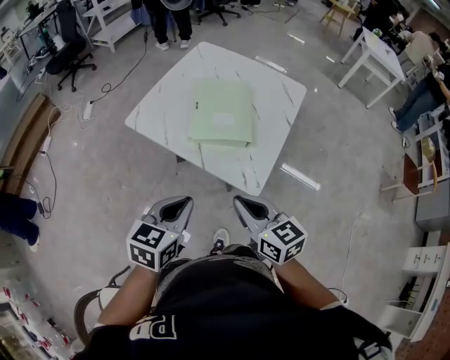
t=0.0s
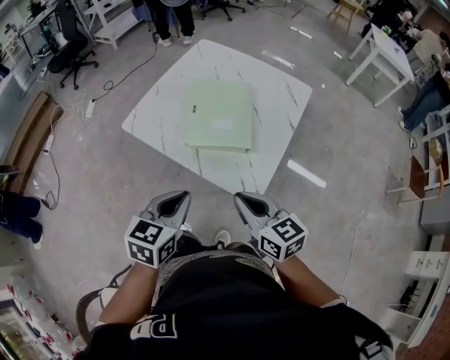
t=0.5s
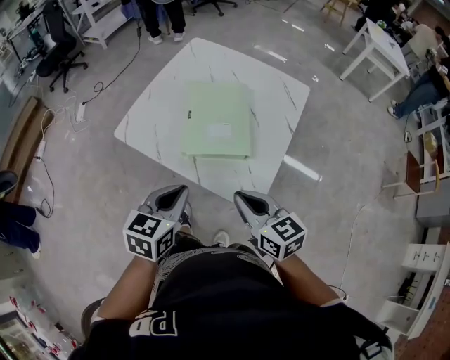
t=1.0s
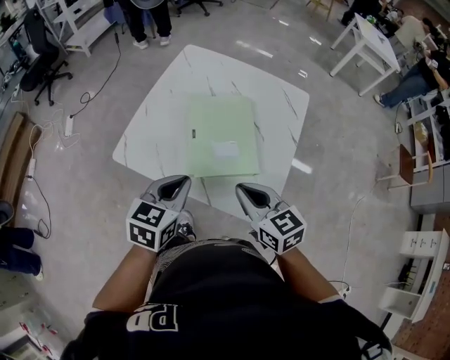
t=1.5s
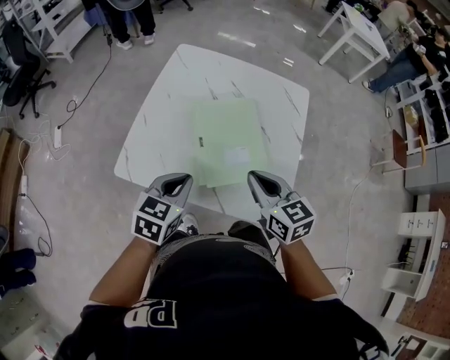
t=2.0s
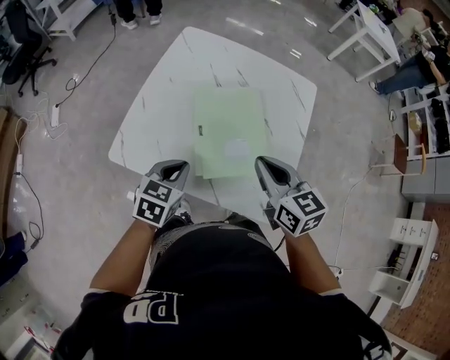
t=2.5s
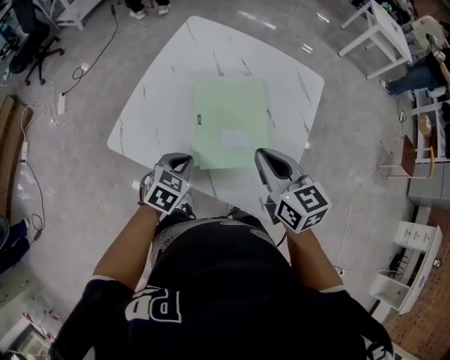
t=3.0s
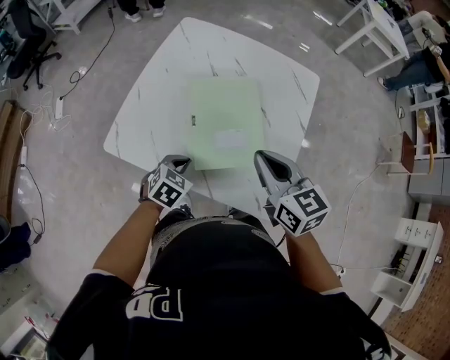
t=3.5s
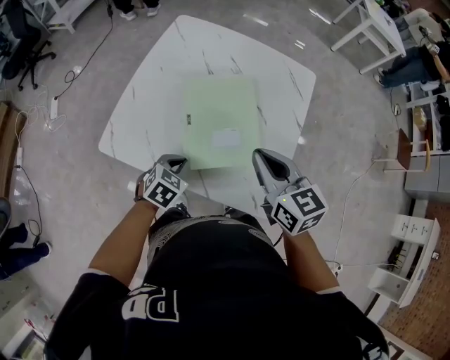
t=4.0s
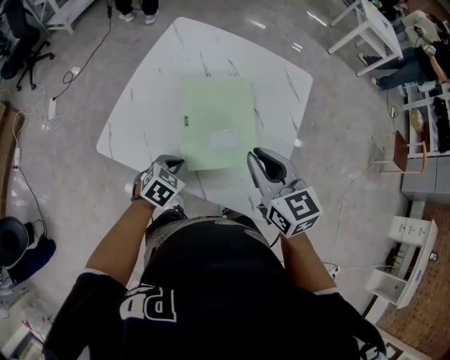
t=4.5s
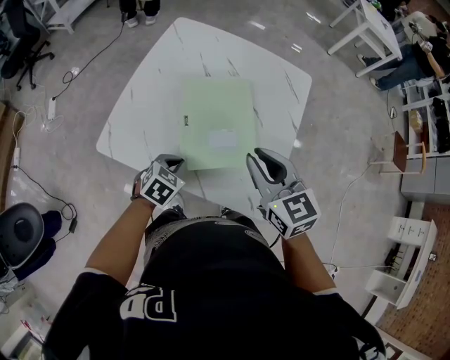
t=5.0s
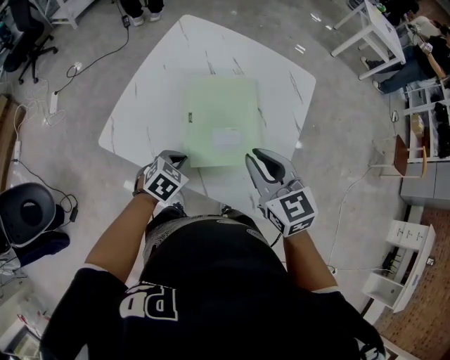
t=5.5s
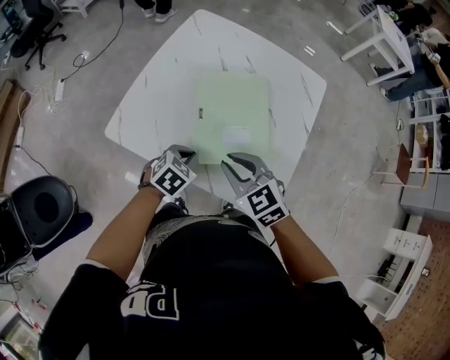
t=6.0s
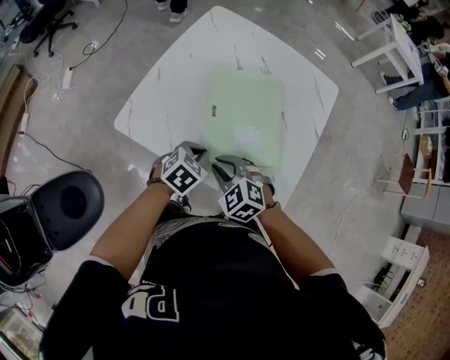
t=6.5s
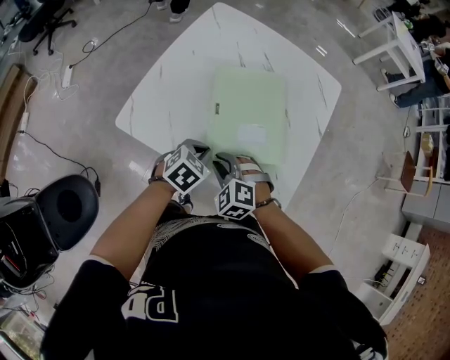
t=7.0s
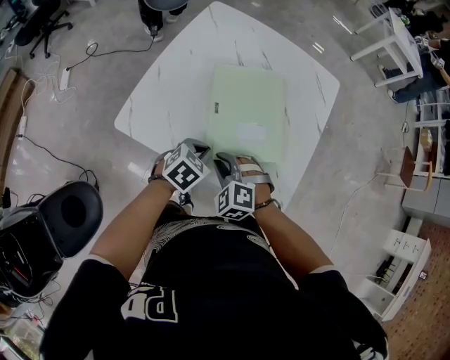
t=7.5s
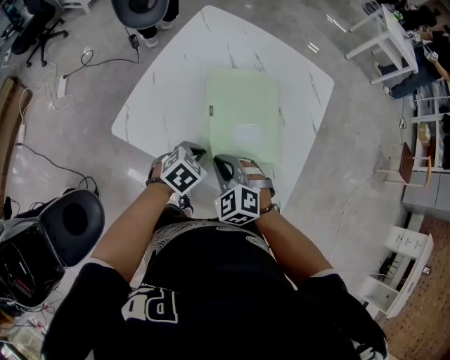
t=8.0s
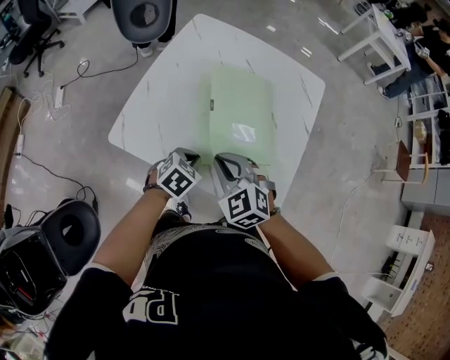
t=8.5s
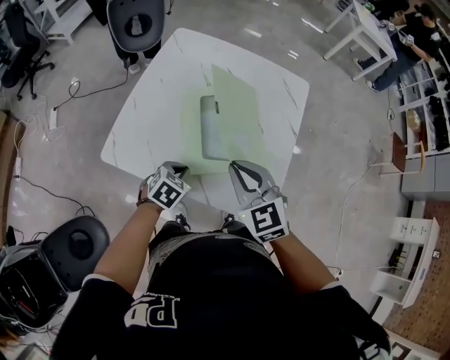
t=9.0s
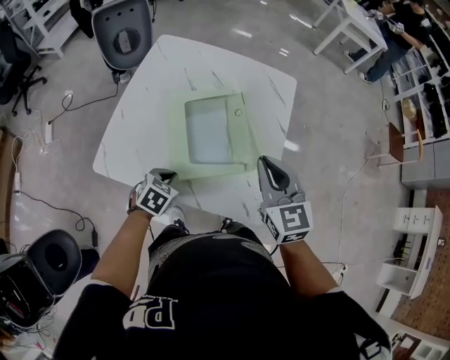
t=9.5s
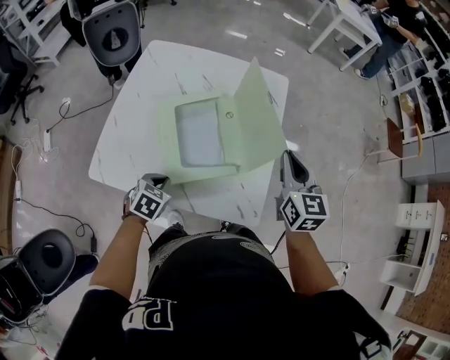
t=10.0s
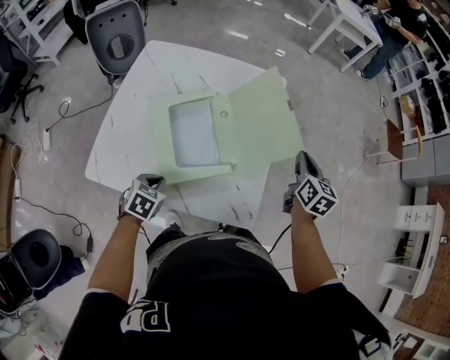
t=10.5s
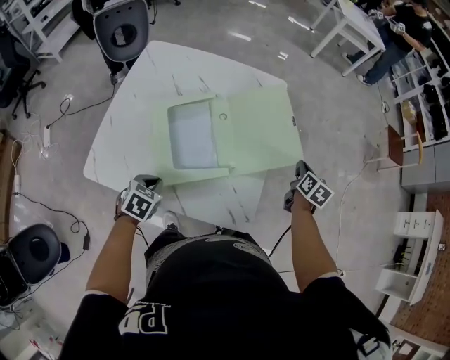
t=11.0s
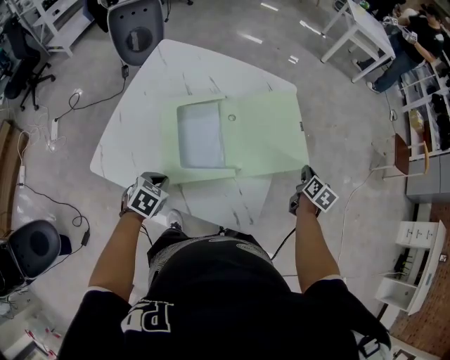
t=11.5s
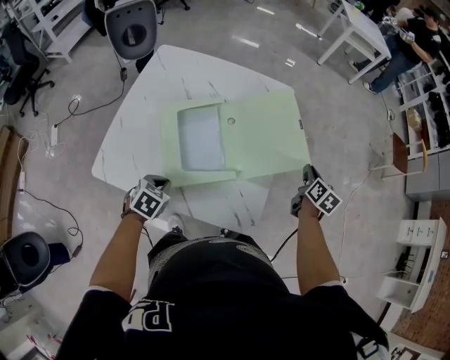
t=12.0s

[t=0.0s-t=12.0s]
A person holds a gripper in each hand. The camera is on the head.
t=0.0s to t=2.0s: Both grippers move forward, about 25 cm.
t=2.0s to t=4.0s: The left gripper shifts some 15 cm downward, and swivels about 20 degrees, while the right gripper ends up roughly 5 cm from where it was.
t=4.0s to t=6.0s: The right gripper shifts approximately 10 cm downward and to the left, and turns by roughly 30 degrees.
t=6.0s to t=8.0s: The right gripper moves downward and to the left, about 10 cm, and rotates roughly 30 degrees.
t=8.0s to t=10.0s: The right gripper travels to the right, upward and forward by roughly 35 cm, and turns by roughly 70 degrees.
t=10.0s to t=12.0s: The right gripper heads to the right, downward and forward, covering some 25 cm, and turns by approximately 30 degrees.

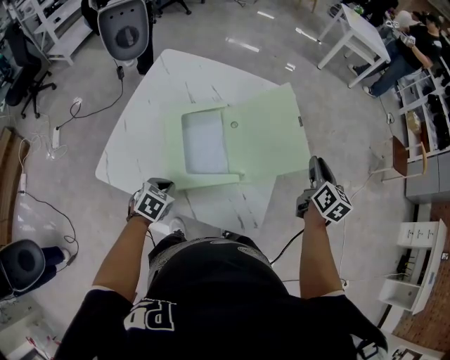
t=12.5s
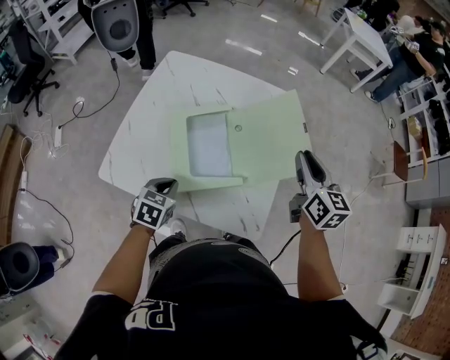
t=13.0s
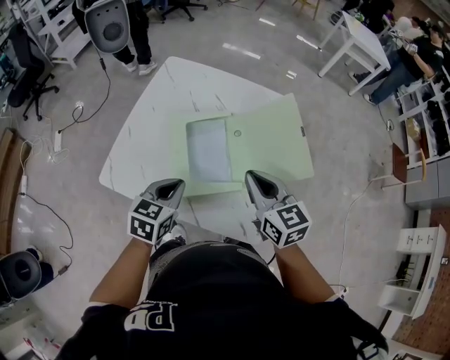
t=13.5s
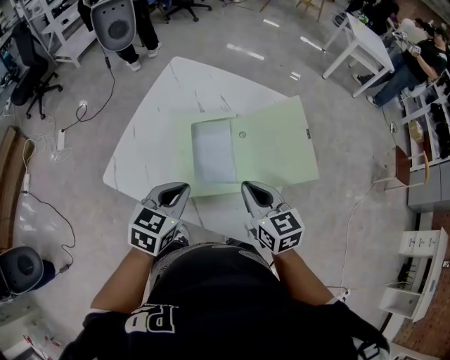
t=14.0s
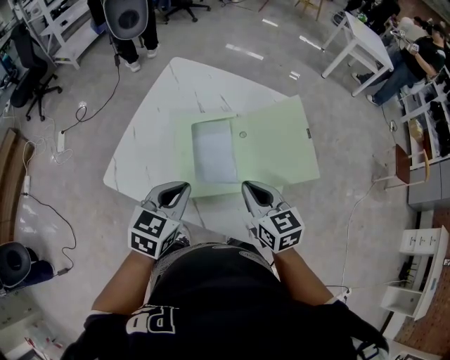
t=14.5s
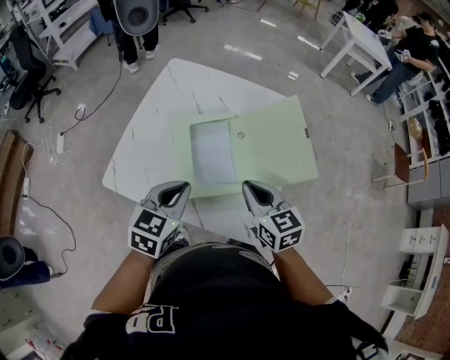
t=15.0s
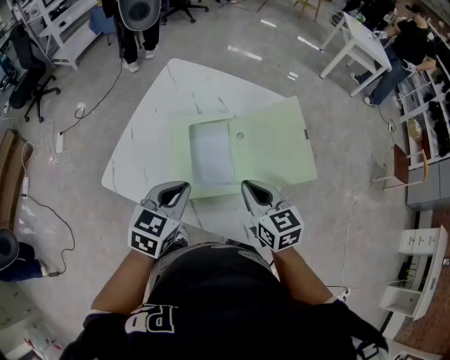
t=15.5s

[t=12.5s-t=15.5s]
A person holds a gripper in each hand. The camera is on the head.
t=12.5s to t=14.0s: The left gripper goes approximately 15 cm upward, and turns by some 30 degrees. The right gripper goes some 25 cm to the left, and turns by some 40 degrees.
t=14.0s to t=15.5s: The grippers move only a little.

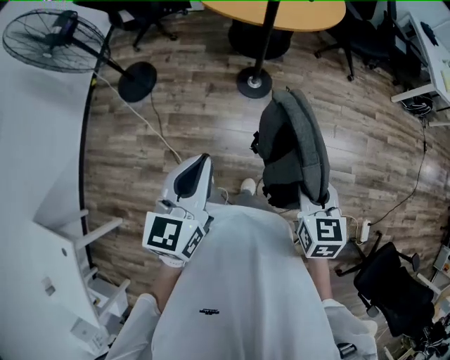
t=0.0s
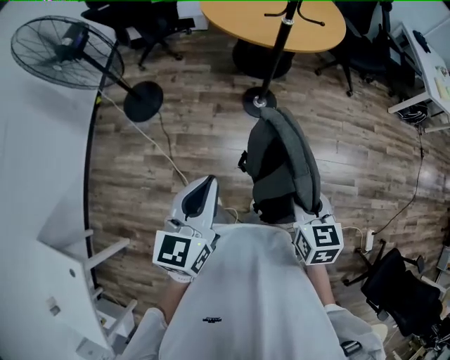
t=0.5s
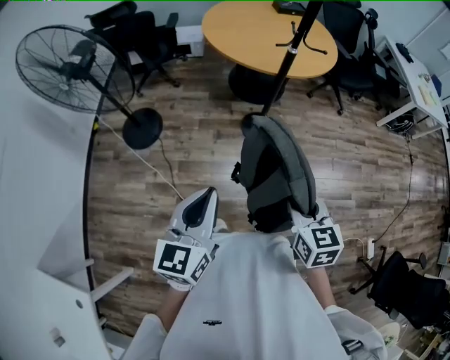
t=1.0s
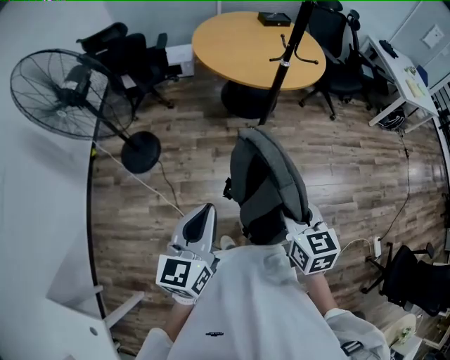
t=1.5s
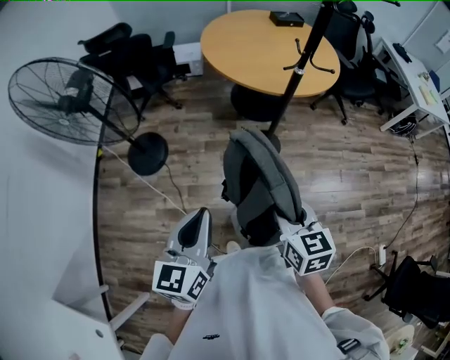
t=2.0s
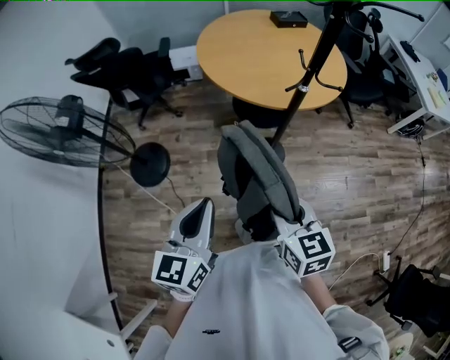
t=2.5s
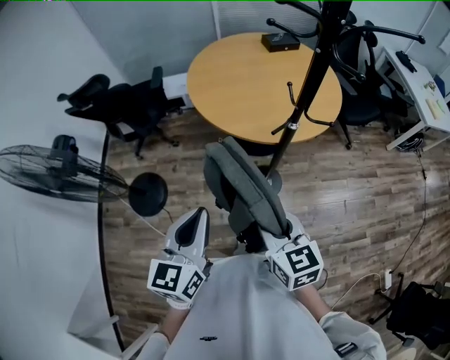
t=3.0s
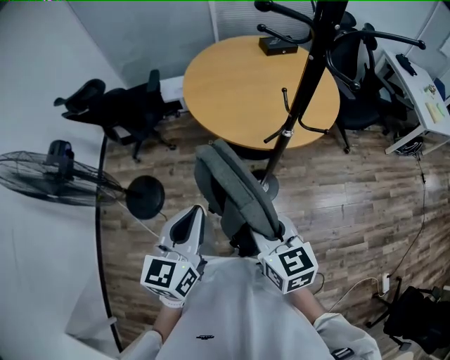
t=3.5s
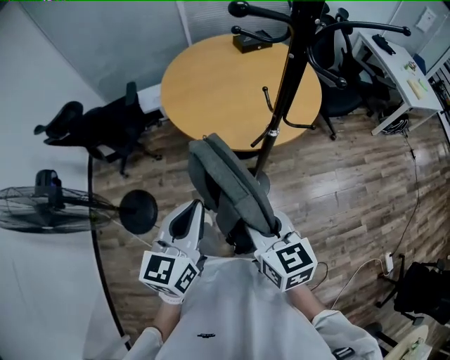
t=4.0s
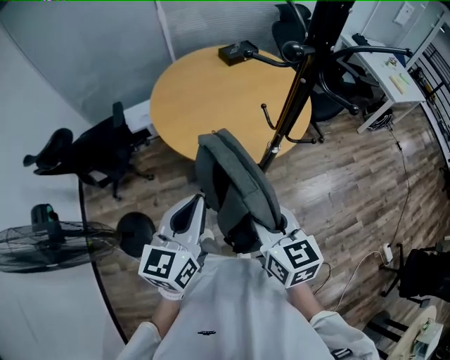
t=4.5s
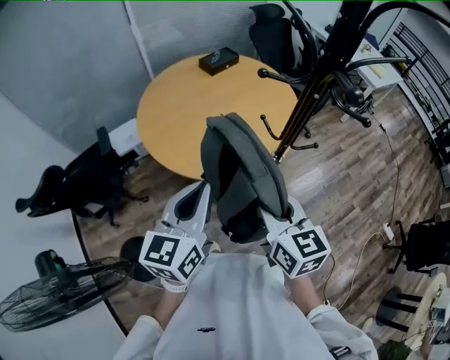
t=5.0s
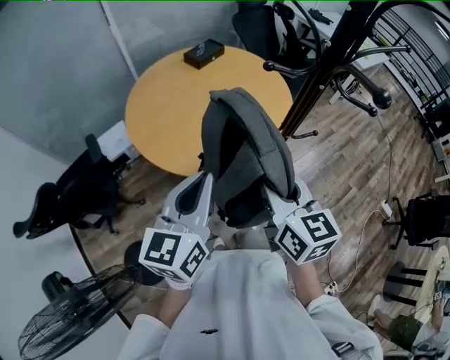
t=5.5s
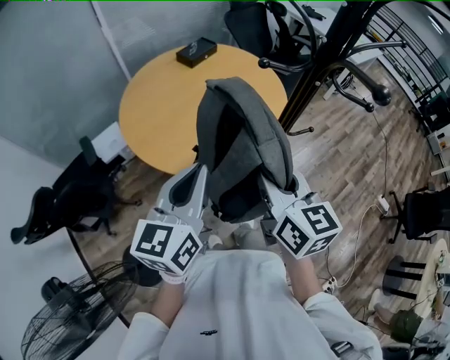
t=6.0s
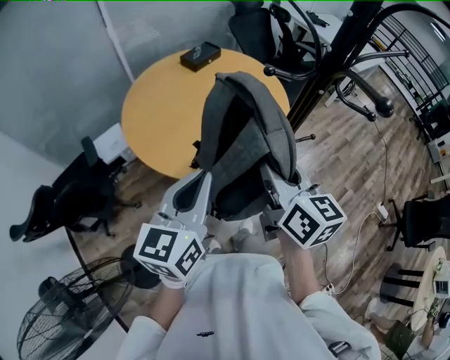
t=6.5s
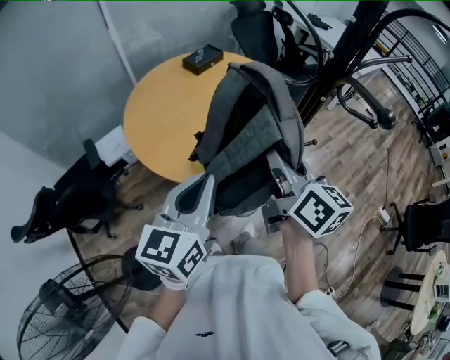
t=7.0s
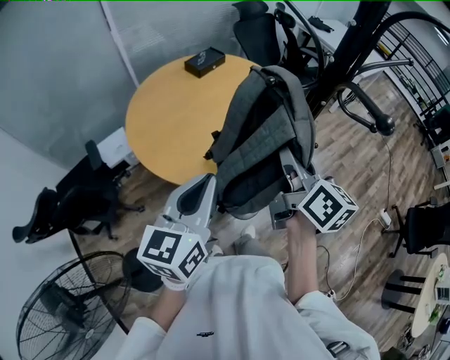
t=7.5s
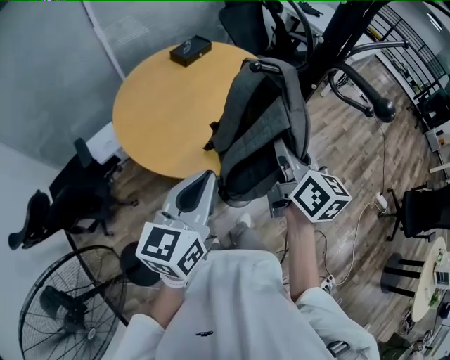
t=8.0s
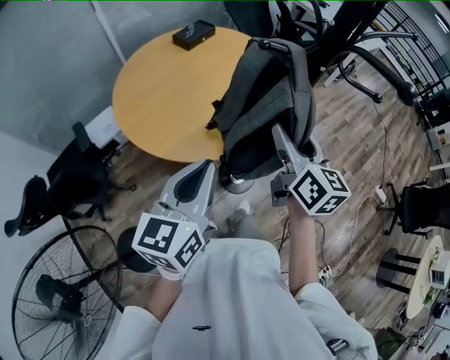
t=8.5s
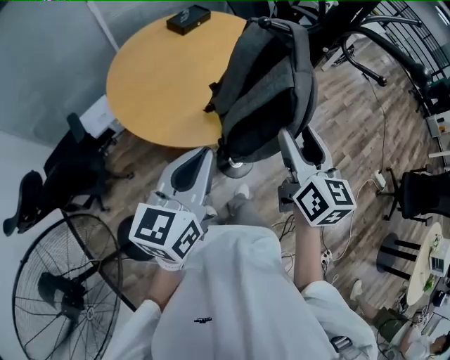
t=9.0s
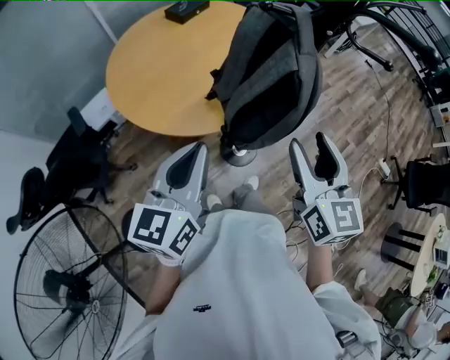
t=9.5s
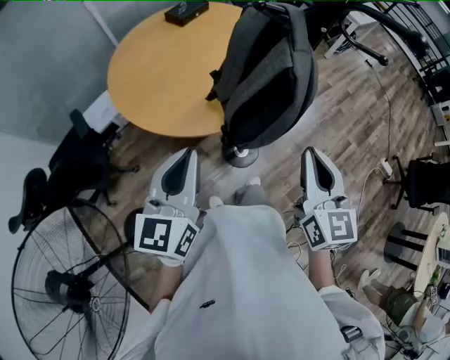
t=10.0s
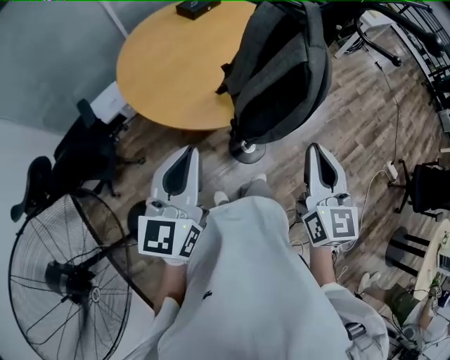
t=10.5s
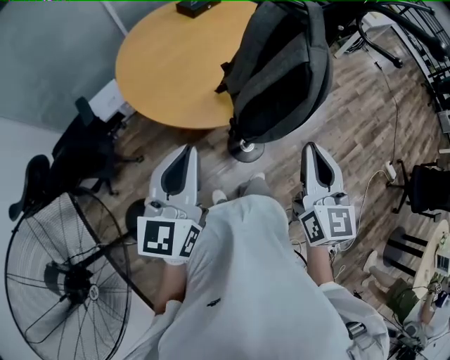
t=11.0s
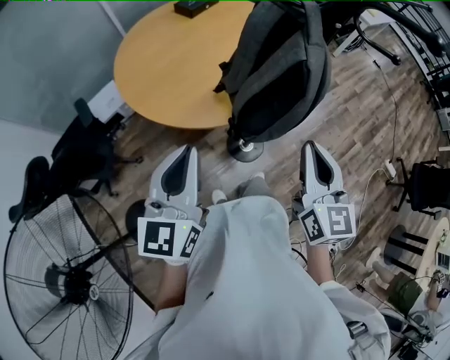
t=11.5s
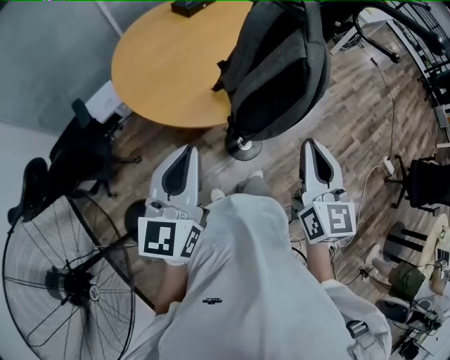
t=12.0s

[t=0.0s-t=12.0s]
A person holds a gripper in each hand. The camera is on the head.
t=0.0s to t=2.0s: The right gripper goes approximately 30 cm to the left and forward. The left gripper travels to the left by roughly 25 cm.
t=2.0s to t=4.0s: The grippers both shift forward by some 30 cm.
t=4.0s to t=6.0s: The right gripper shifts by some 20 cm, and turns by about 40 degrees; the left gripper moves some 25 cm, and turns by roughly 30 degrees.
t=6.0s to t=8.0s: The right gripper shifts roughly 10 cm forward and to the right.
t=8.0s to t=10.0s: The left gripper travels backward by some 5 cm, while the right gripper moves backward, about 15 cm, rotates roughly 30 degrees, and opens, then closes again.
t=10.0s to t=12.0s: The grippers stay close to where they were, moving slightly.
